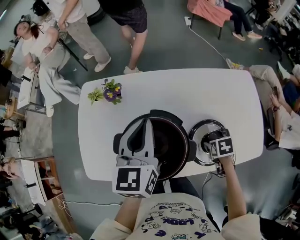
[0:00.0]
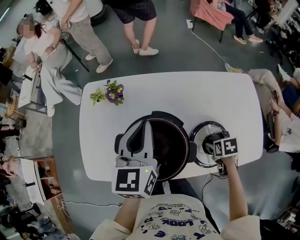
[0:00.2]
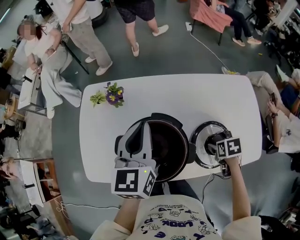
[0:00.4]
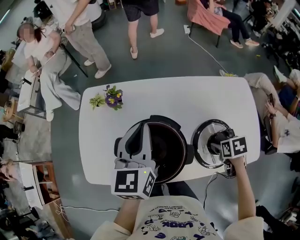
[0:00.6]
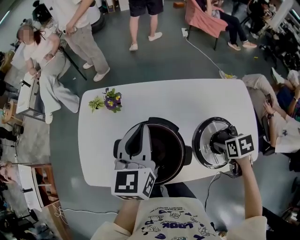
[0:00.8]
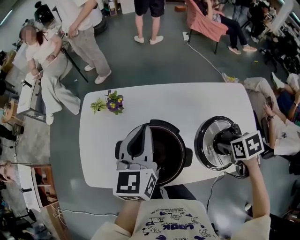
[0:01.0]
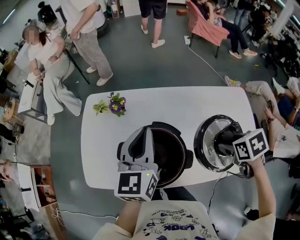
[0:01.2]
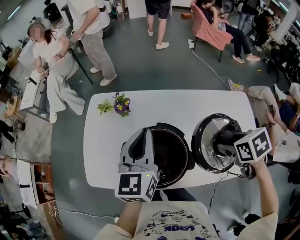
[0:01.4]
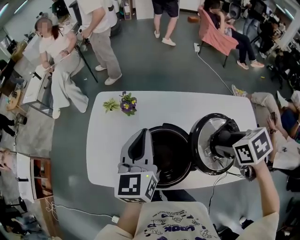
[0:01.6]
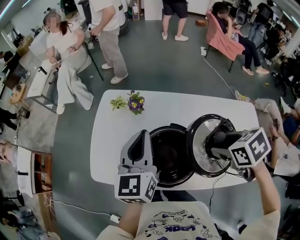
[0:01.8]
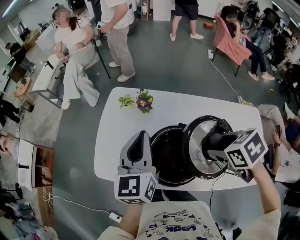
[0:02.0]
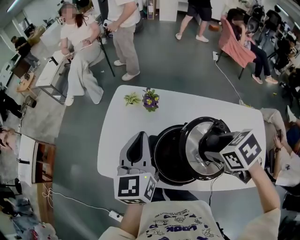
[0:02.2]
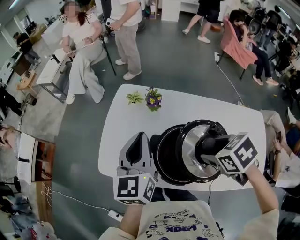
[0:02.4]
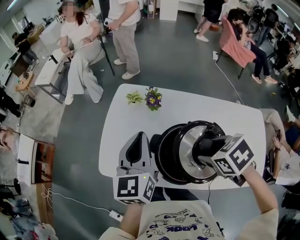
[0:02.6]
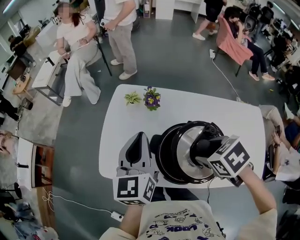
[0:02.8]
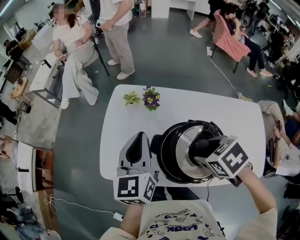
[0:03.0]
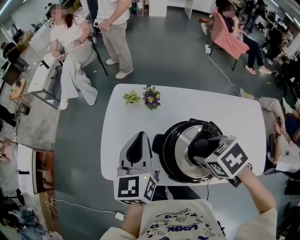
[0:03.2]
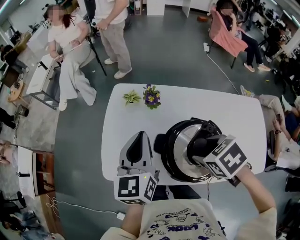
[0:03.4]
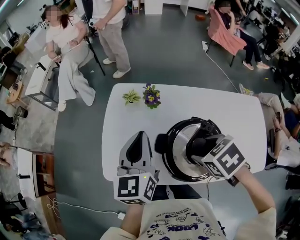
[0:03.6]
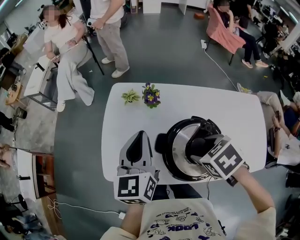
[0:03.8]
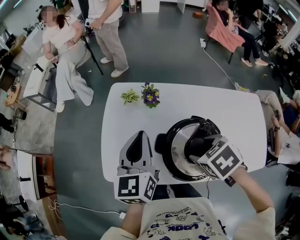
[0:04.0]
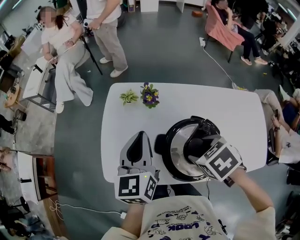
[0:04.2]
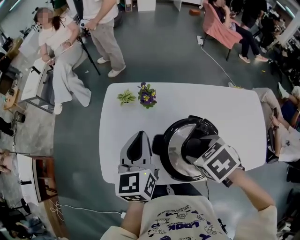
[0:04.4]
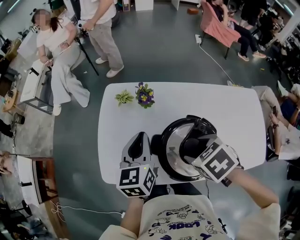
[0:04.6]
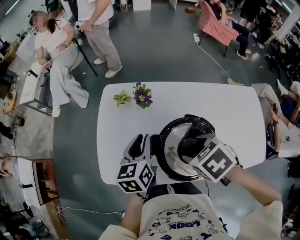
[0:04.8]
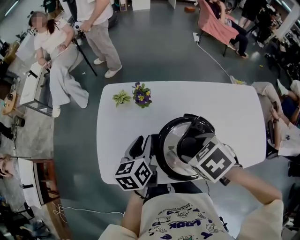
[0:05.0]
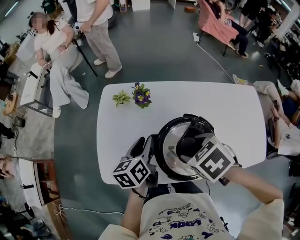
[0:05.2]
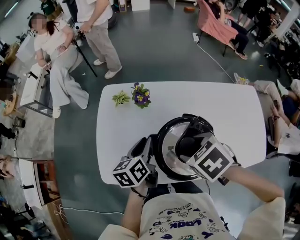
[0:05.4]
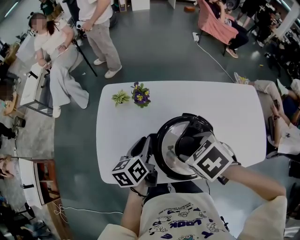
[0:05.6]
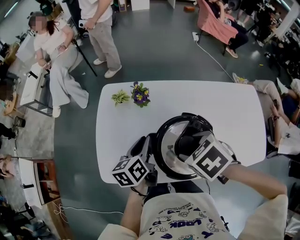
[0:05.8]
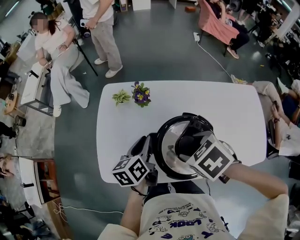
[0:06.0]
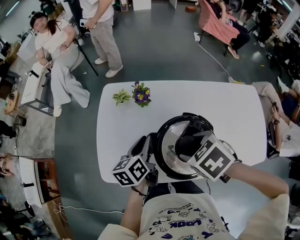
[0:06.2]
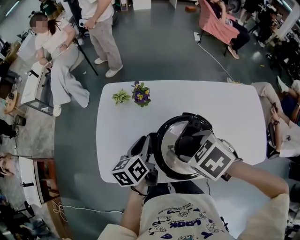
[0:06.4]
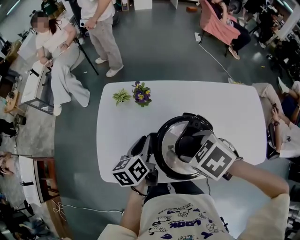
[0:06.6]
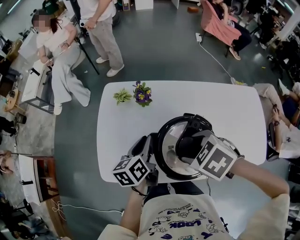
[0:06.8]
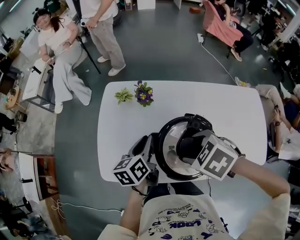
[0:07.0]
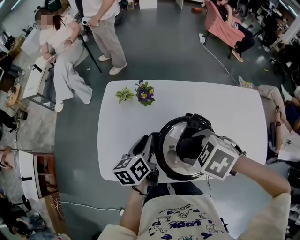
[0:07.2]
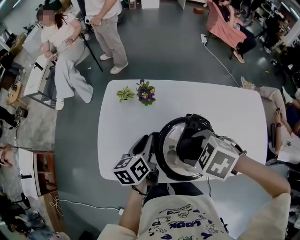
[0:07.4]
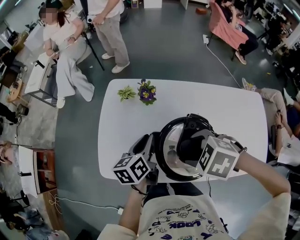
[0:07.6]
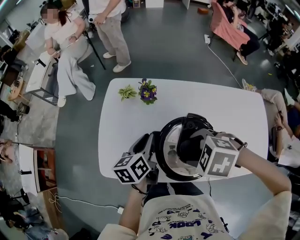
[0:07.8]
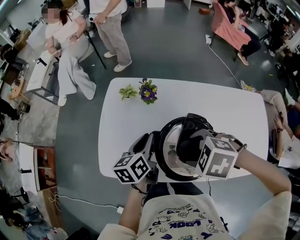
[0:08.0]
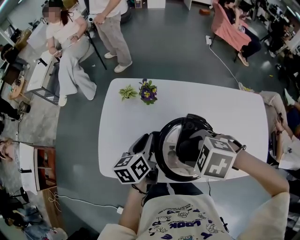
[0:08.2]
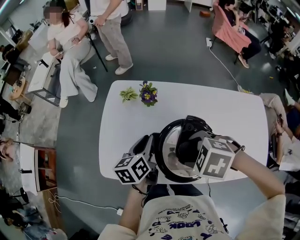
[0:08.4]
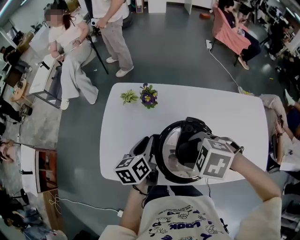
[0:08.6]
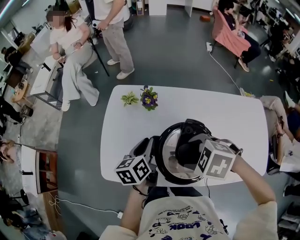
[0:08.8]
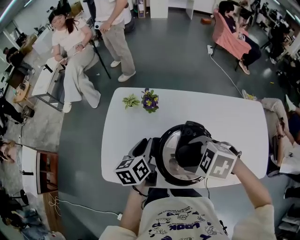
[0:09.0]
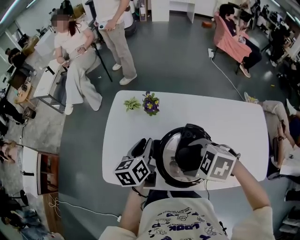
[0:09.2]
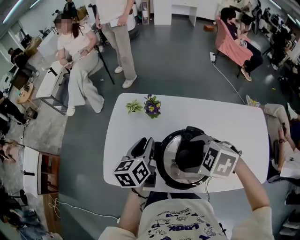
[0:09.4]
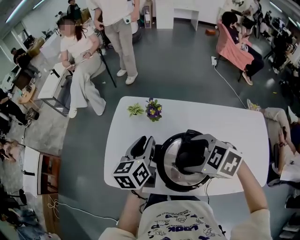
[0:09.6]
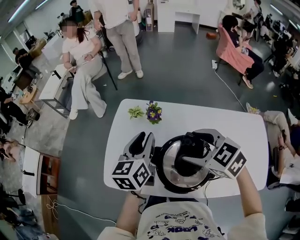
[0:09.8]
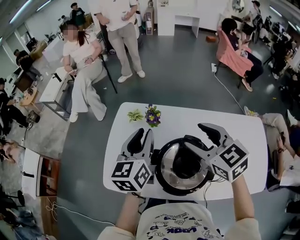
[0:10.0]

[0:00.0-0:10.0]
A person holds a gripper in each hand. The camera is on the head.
0:00.0 to 0:01.4: The left gripper changes place by approximately 5 cm, while the right gripper travels upward by approximately 20 cm, and changes its angle by about 20 degrees.
0:01.4 to 0:02.8: Both grippers move to the left, approximately 20 cm. The right gripper swivels about 30 degrees.
0:02.8 to 0:04.2: The right gripper changes place by roughly 5 cm.
0:04.2 to 0:05.8: The left gripper goes roughly 10 cm downward, and turns by approximately 30 degrees.
0:05.8 to 0:07.2: There are only small adjustments of the grippers.
0:07.2 to 0:08.6: The grippers move only a little.
0:08.6 to 0:10.0: The left gripper is displaced upward by roughly 15 cm, and turns by some 30 degrees. The right gripper goes some 15 cm upward, forward and to the right, and points its fingers about 50 degrees further upward.

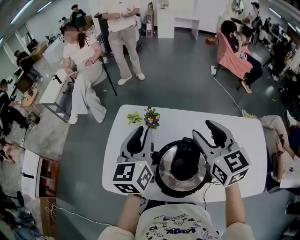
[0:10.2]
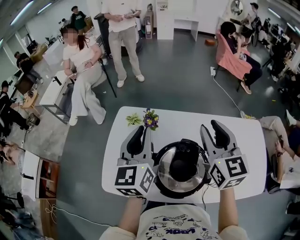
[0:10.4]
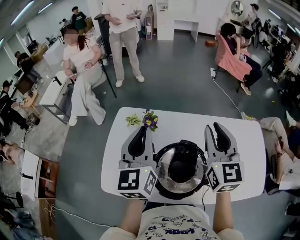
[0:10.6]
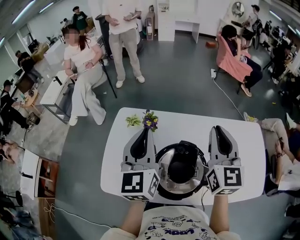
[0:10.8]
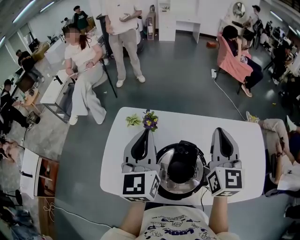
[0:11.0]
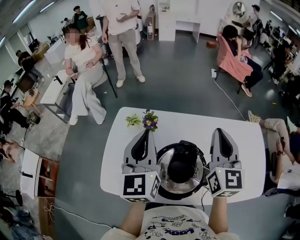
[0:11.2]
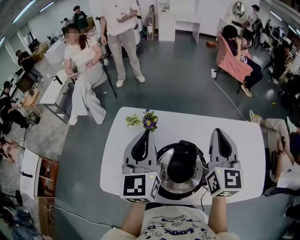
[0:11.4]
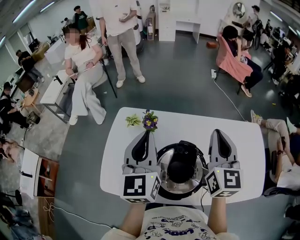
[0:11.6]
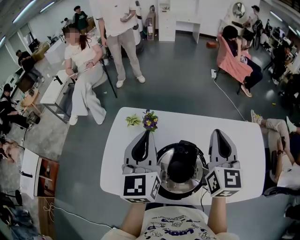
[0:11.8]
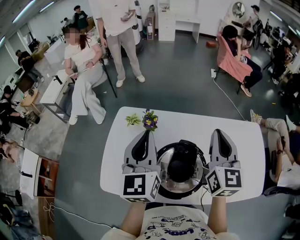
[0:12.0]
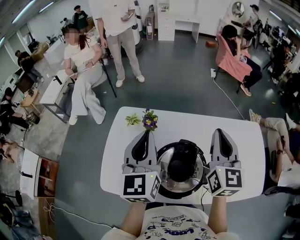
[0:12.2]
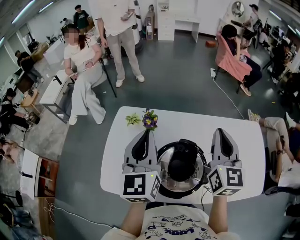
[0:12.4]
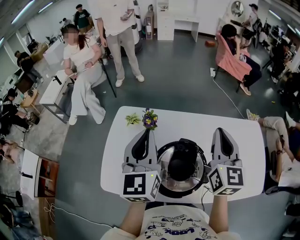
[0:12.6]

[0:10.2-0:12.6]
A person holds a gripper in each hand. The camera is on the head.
0:10.2 to 0:11.4: The right gripper is displaced to the right by some 5 cm, swivels approximately 30 degrees, and closes up; the left gripper ends up roughly 5 cm from where it was, and closes up.
0:11.4 to 0:12.6: Neither gripper changes place.

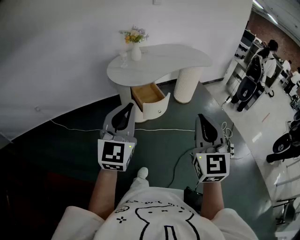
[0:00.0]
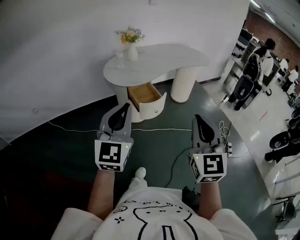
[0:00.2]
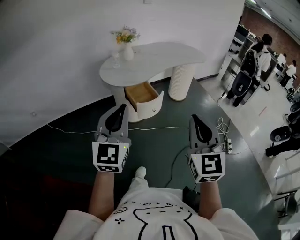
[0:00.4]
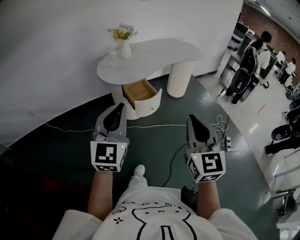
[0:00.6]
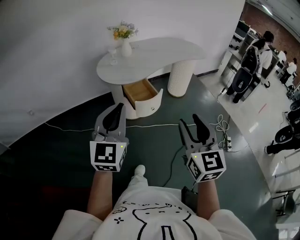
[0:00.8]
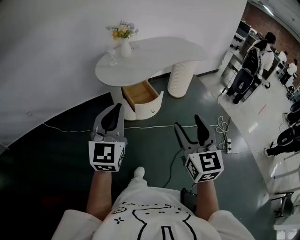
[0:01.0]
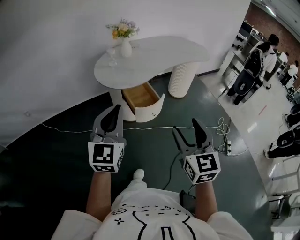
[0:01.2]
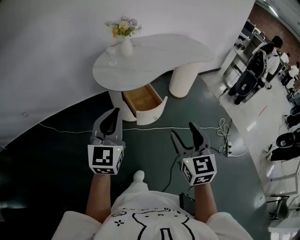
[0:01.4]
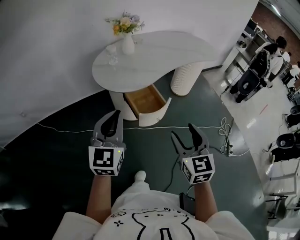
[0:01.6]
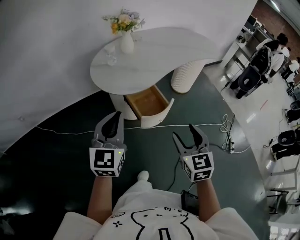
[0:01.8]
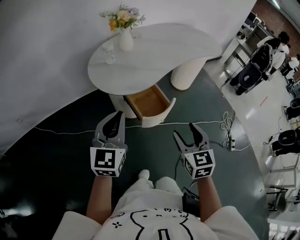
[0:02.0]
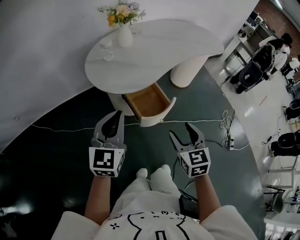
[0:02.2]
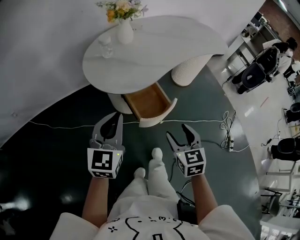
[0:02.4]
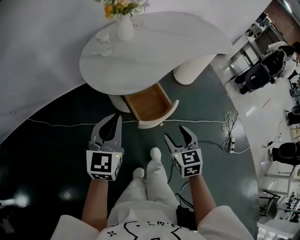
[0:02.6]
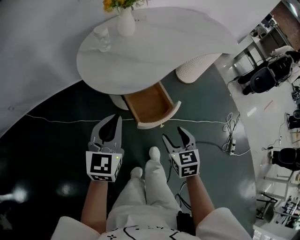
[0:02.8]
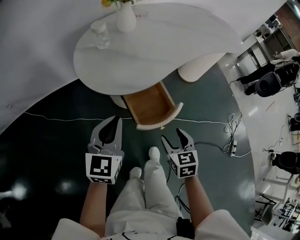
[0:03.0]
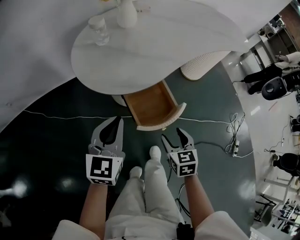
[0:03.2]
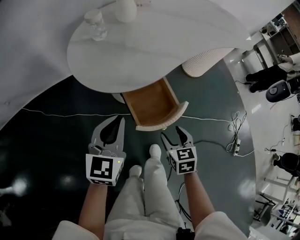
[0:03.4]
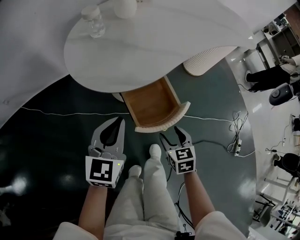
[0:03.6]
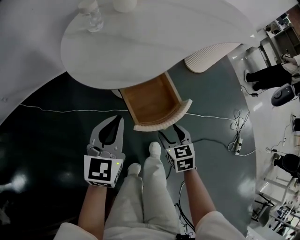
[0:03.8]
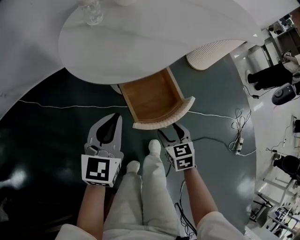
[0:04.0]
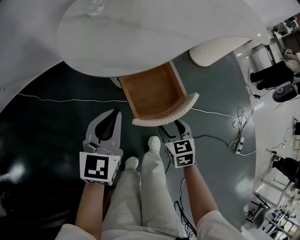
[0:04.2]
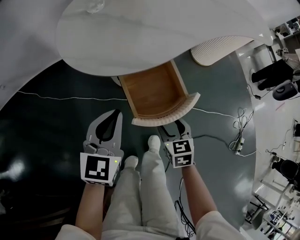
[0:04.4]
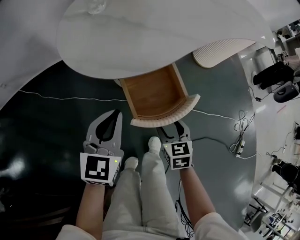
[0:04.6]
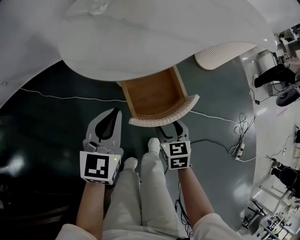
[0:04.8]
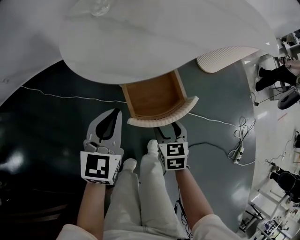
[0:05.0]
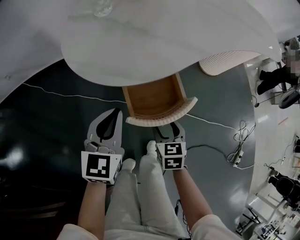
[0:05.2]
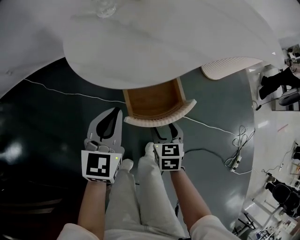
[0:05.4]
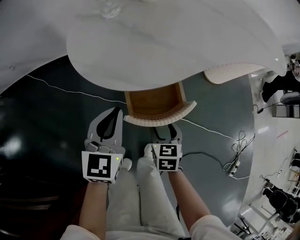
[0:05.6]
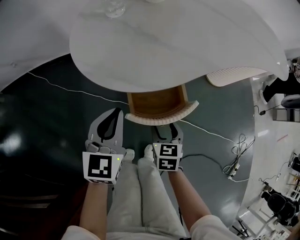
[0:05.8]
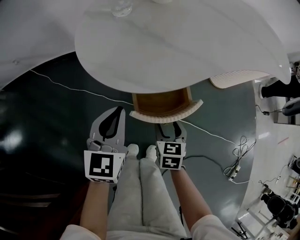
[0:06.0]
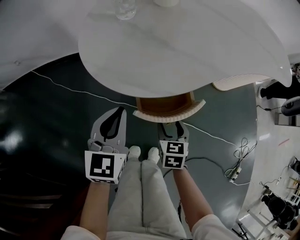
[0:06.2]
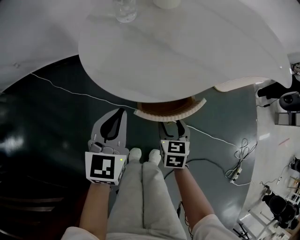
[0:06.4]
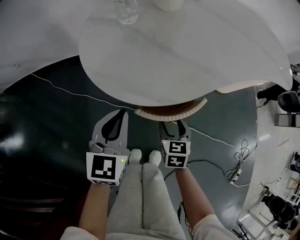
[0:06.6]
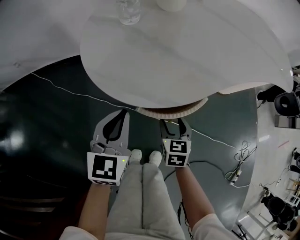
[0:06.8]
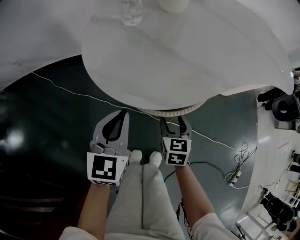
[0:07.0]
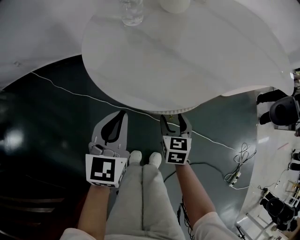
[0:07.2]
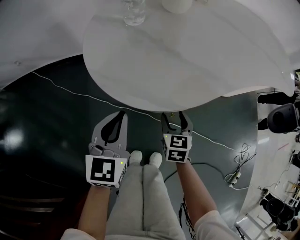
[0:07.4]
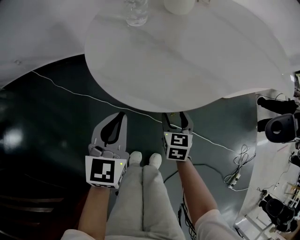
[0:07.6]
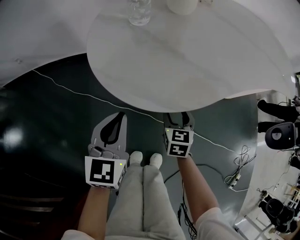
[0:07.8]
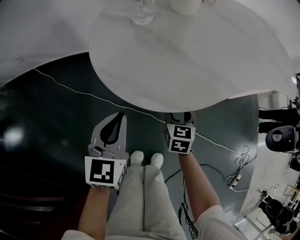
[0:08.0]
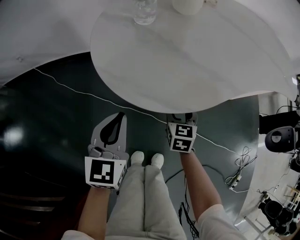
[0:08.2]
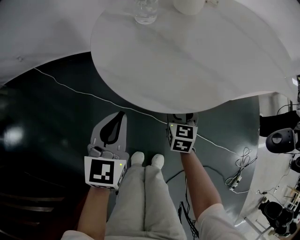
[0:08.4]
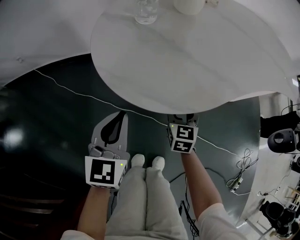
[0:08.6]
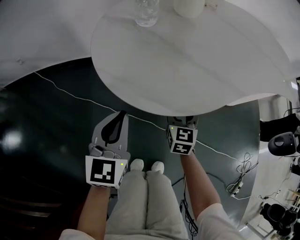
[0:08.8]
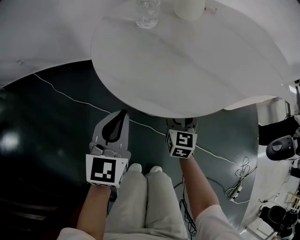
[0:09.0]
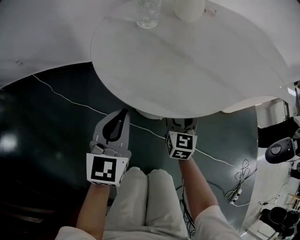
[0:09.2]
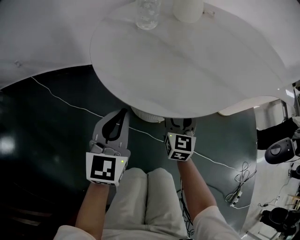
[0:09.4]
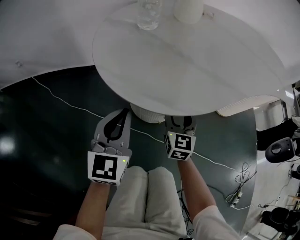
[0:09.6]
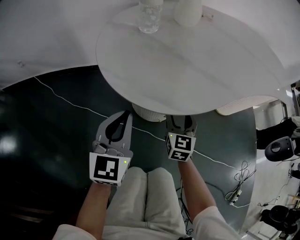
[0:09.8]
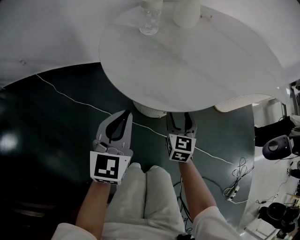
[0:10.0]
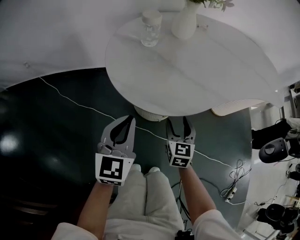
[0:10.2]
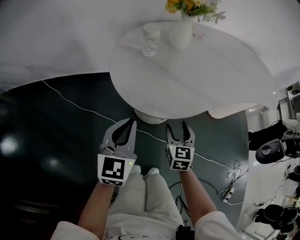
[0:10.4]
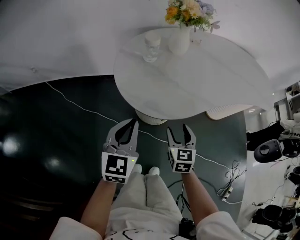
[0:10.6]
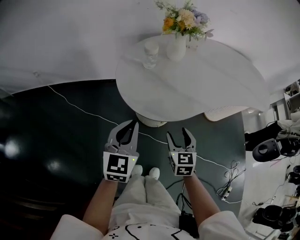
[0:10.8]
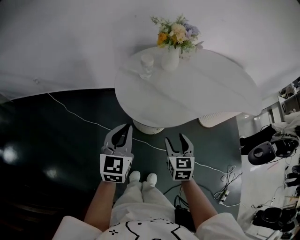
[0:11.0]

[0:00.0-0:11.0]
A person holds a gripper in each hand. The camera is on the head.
0:00.0 to 0:01.6: The two grippers go roughly 25 cm forward and downward. The right gripper rotates about 20 degrees, and opens.
0:01.6 to 0:03.2: The grippers both shift downward and forward by some 30 cm. The right gripper rotates approximately 30 degrees.
0:03.2 to 0:04.8: The two grippers go some 10 cm downward.
0:04.8 to 0:06.2: The right gripper goes roughly 10 cm forward. The left gripper ends up some 5 cm from where it was.
0:06.2 to 0:07.8: The right gripper shifts approximately 10 cm forward.
0:07.8 to 0:09.4: The right gripper rotates roughly 20 degrees.
0:09.4 to 0:11.0: The right gripper heads upward and backward, covering some 25 cm. The left gripper shifts about 25 cm upward.
